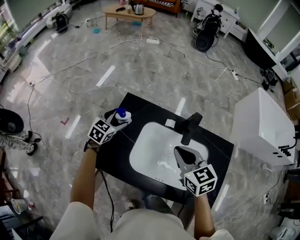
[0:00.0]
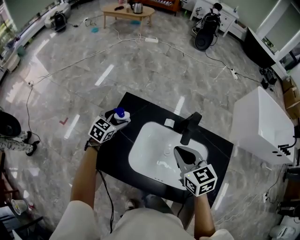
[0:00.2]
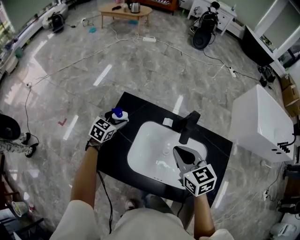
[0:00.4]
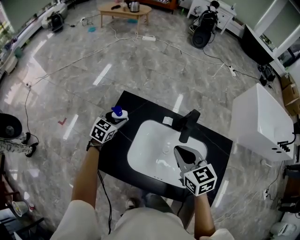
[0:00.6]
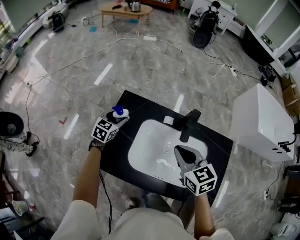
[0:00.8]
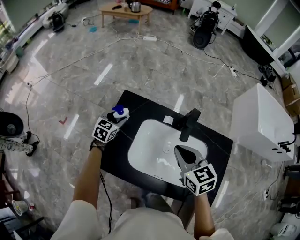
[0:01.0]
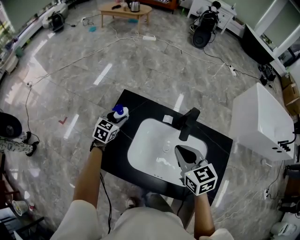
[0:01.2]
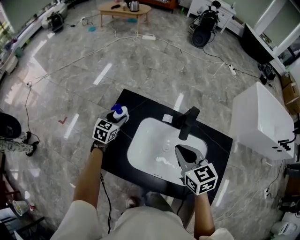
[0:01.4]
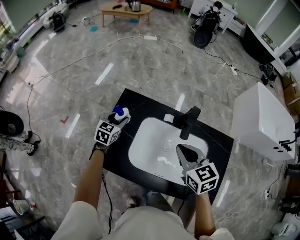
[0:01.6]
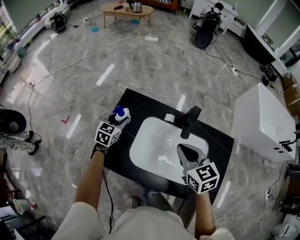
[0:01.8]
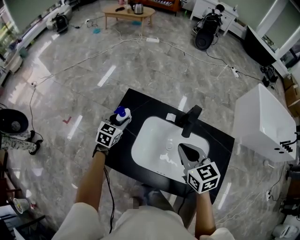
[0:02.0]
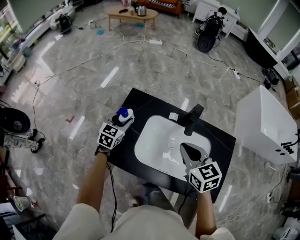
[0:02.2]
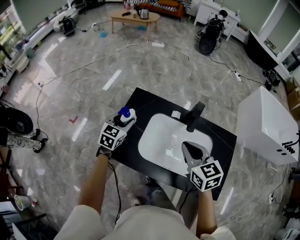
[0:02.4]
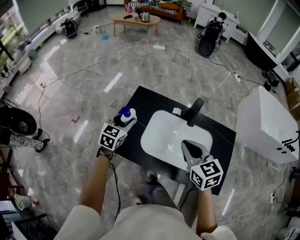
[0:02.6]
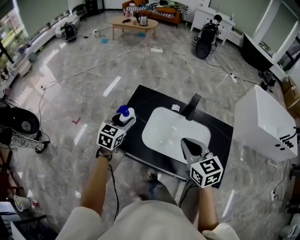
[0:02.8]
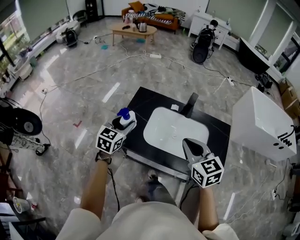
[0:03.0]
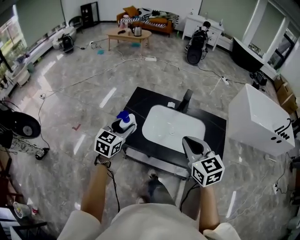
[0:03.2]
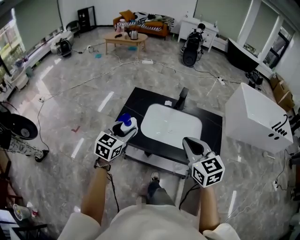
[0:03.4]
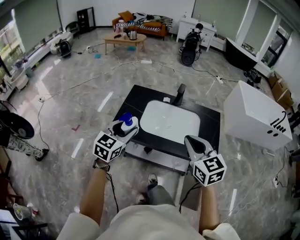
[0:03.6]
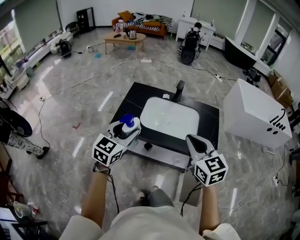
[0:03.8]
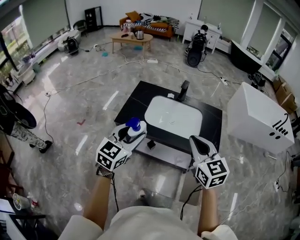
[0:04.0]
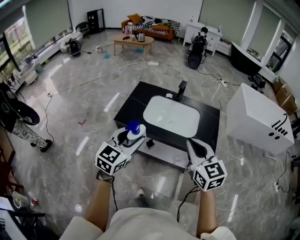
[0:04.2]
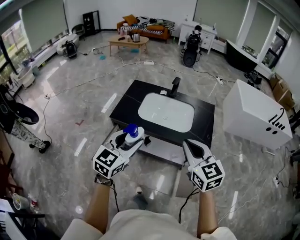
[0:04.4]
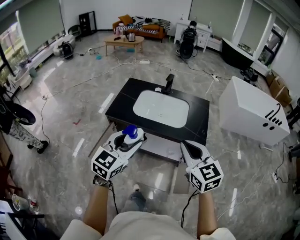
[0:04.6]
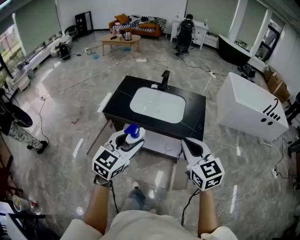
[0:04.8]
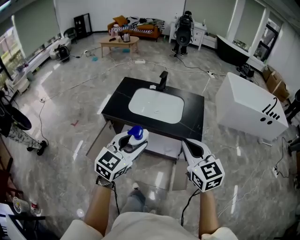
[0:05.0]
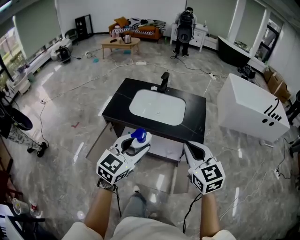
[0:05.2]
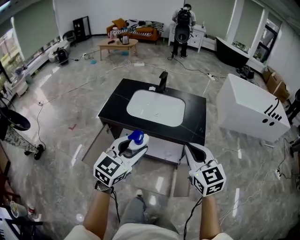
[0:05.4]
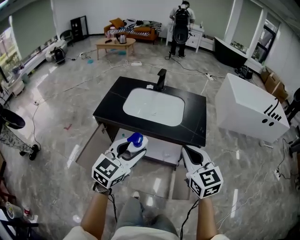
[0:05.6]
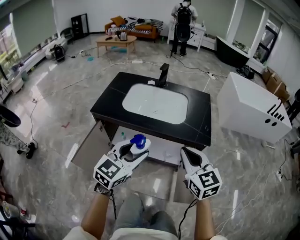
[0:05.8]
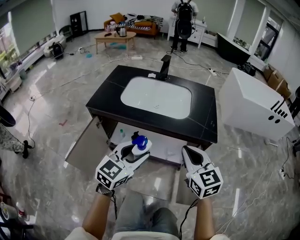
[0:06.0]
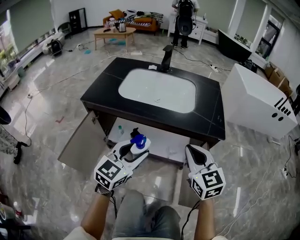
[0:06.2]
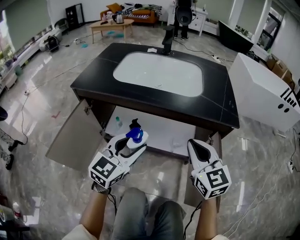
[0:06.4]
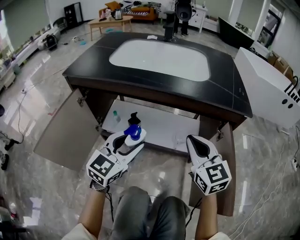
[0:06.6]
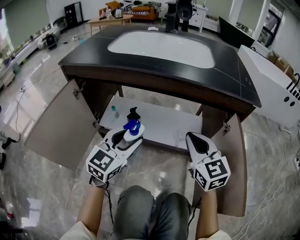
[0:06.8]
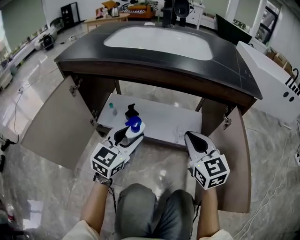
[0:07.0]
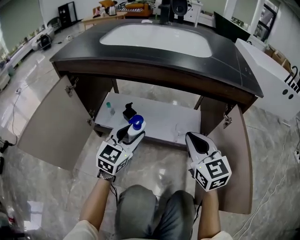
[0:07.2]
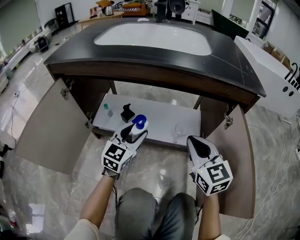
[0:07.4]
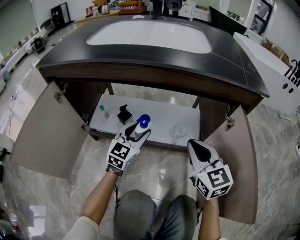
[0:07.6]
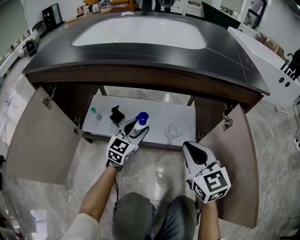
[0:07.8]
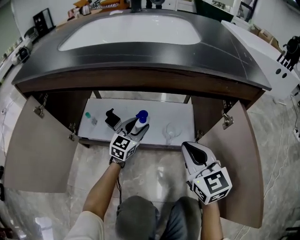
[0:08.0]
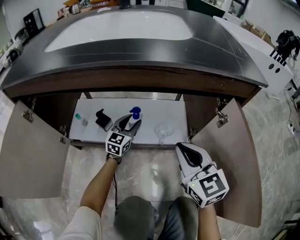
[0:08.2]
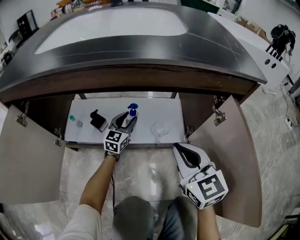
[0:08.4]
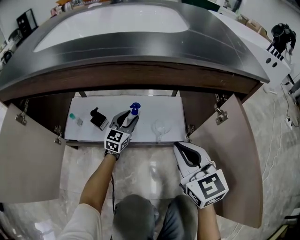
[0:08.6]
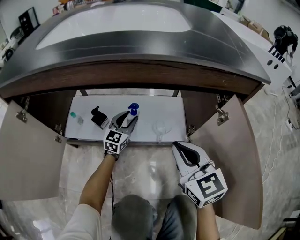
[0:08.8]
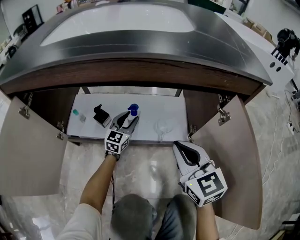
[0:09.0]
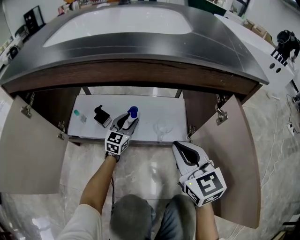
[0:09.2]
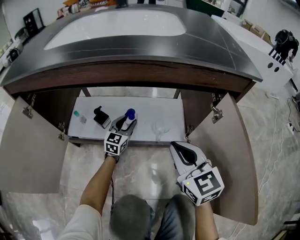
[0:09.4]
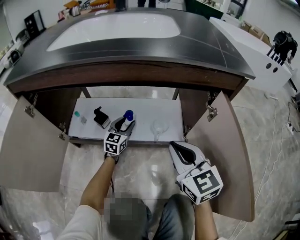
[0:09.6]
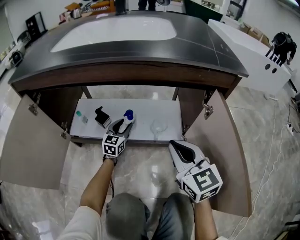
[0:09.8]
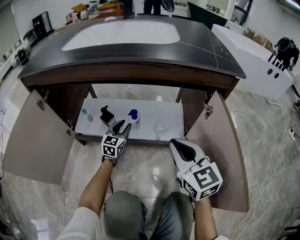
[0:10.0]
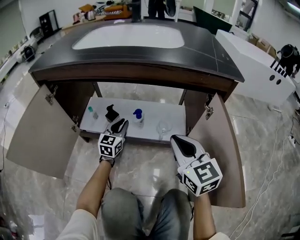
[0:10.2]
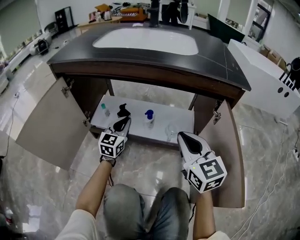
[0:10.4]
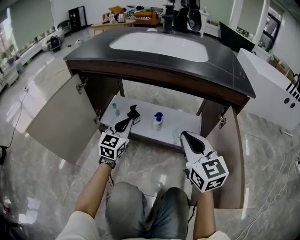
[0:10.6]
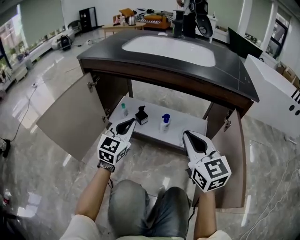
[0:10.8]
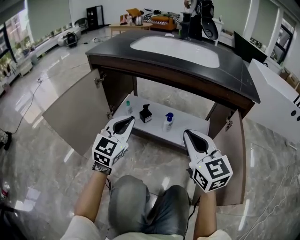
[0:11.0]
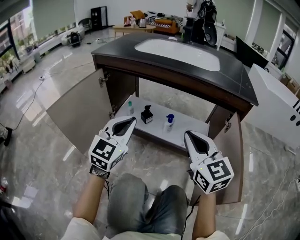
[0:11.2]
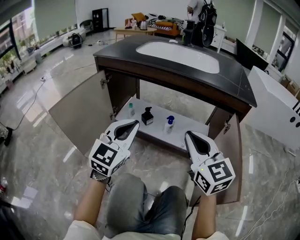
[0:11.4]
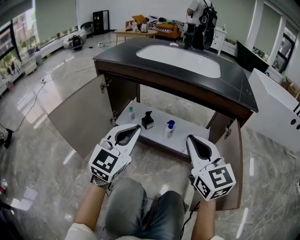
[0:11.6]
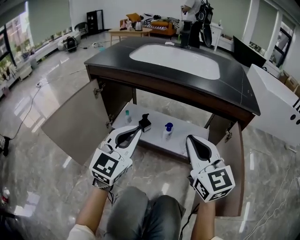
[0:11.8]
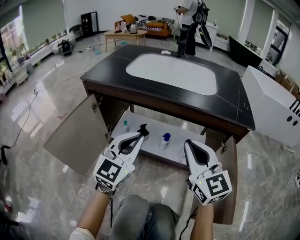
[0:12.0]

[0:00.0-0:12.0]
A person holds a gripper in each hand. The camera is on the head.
0.0 to 1.6 s: The left gripper closes up.
1.6 to 3.0 s: Both grippers move backward and upward, roughly 25 cm.
3.0 to 4.4 s: The right gripper is displaced backward by some 30 cm. Meanwhile the left gripper heads backward and to the right, covering some 40 cm.
4.4 to 6.0 s: Both grippers travel together downward, about 25 cm.
6.0 to 7.6 s: The left gripper heads downward and forward, covering roughly 50 cm. The right gripper shifts approximately 35 cm downward.
7.6 to 9.0 s: The left gripper shifts some 20 cm downward and forward.
9.0 to 10.4 s: The right gripper shifts some 10 cm upward and backward, while the left gripper travels upward, backward and to the left by roughly 20 cm, and closes up.
10.4 to 12.0 s: The left gripper moves upward and backward, roughly 25 cm. Meanwhile the right gripper moves upward and to the left, some 15 cm.

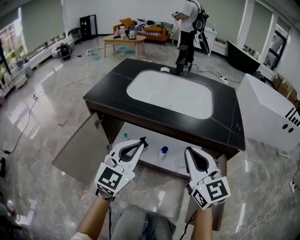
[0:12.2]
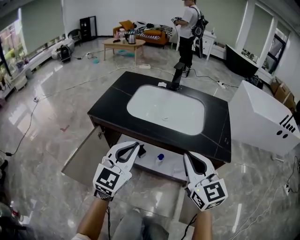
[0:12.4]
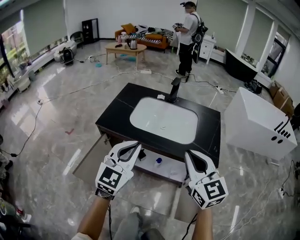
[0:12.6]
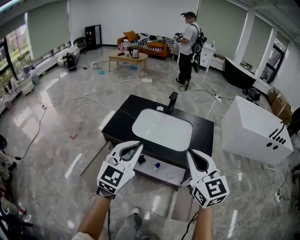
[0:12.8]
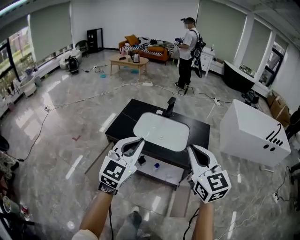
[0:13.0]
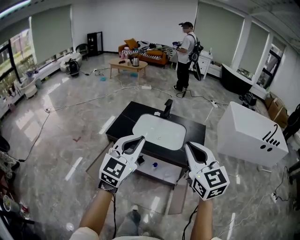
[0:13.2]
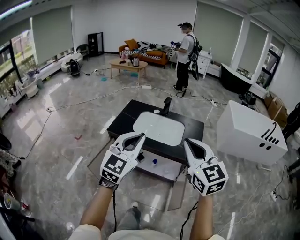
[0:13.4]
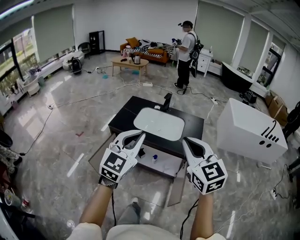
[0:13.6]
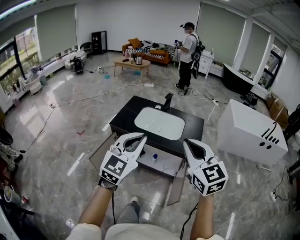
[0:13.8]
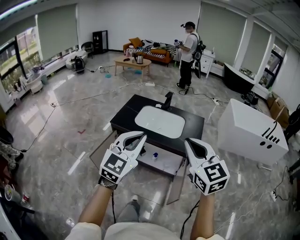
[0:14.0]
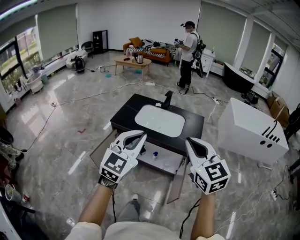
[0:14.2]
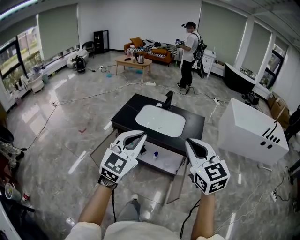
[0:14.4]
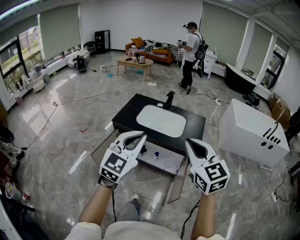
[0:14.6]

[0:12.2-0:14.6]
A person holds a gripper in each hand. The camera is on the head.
12.2 to 13.4 s: The two grippers go some 50 cm upward.
13.4 to 14.6 s: The two grippers go approximately 10 cm backward.

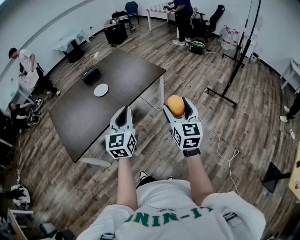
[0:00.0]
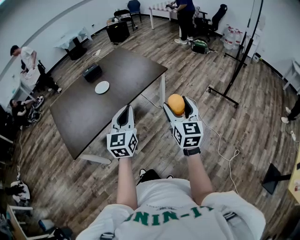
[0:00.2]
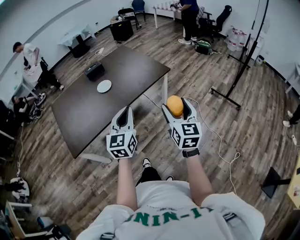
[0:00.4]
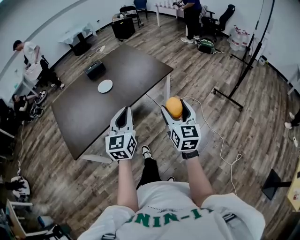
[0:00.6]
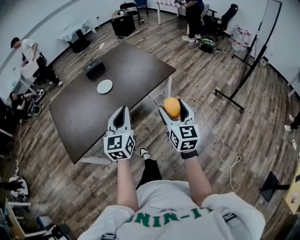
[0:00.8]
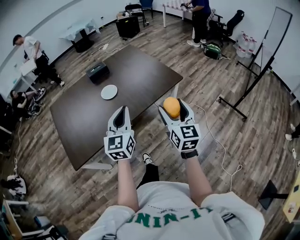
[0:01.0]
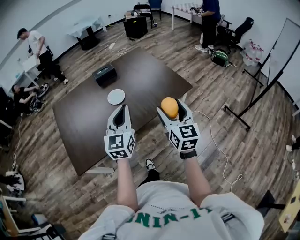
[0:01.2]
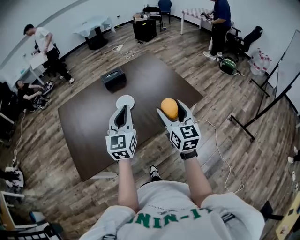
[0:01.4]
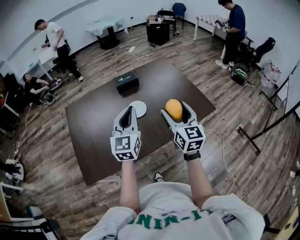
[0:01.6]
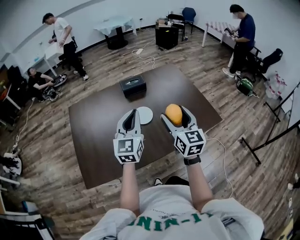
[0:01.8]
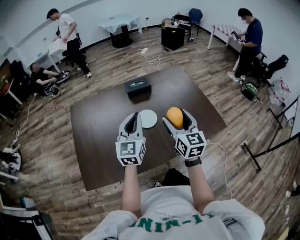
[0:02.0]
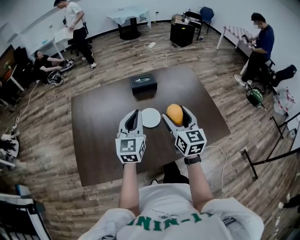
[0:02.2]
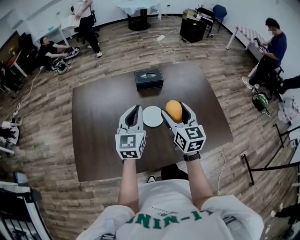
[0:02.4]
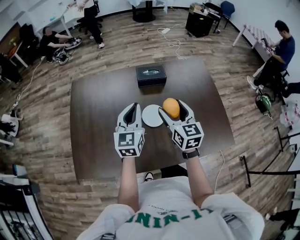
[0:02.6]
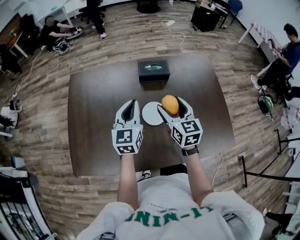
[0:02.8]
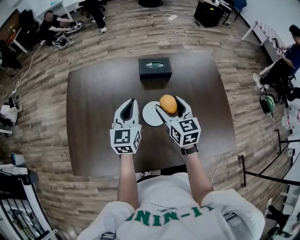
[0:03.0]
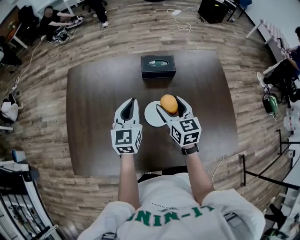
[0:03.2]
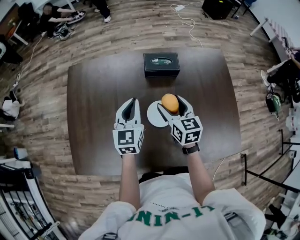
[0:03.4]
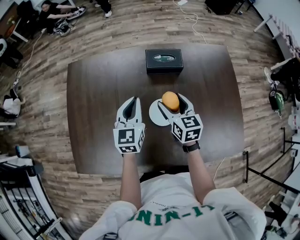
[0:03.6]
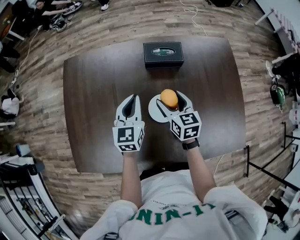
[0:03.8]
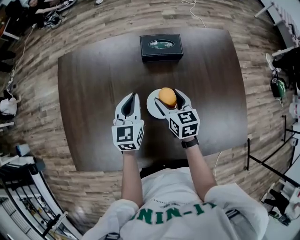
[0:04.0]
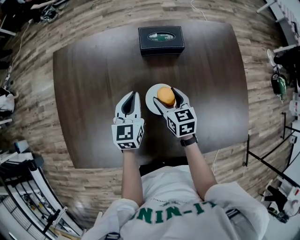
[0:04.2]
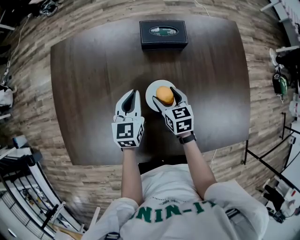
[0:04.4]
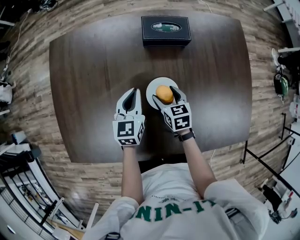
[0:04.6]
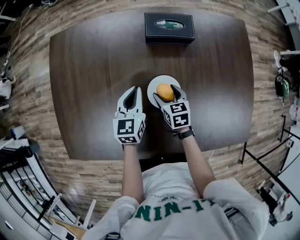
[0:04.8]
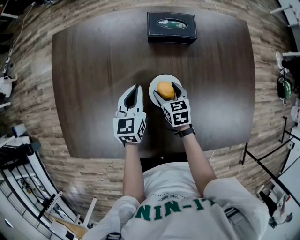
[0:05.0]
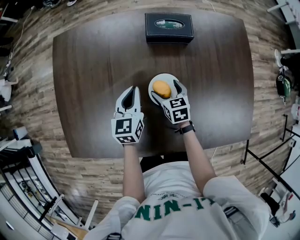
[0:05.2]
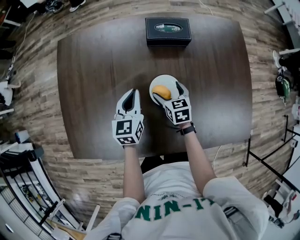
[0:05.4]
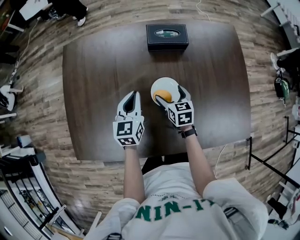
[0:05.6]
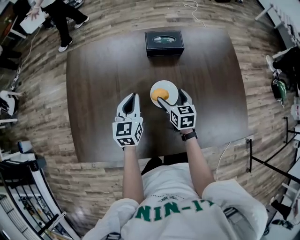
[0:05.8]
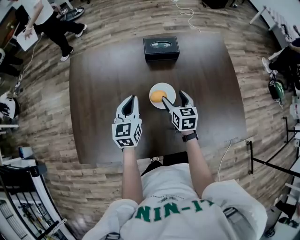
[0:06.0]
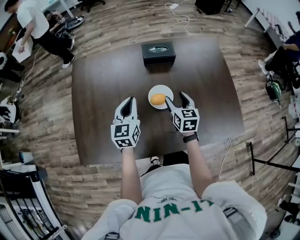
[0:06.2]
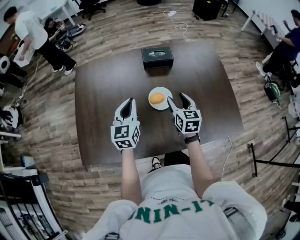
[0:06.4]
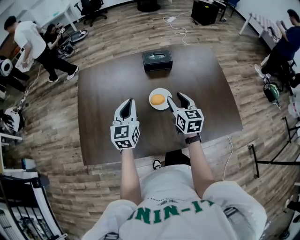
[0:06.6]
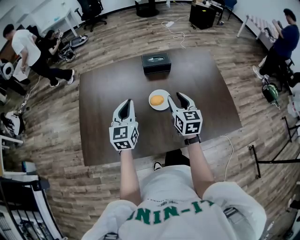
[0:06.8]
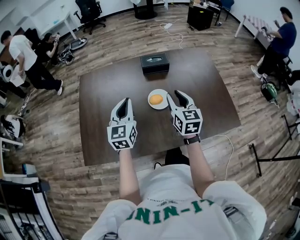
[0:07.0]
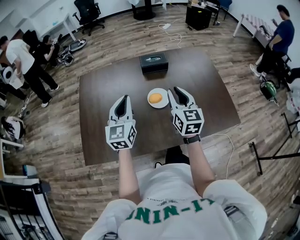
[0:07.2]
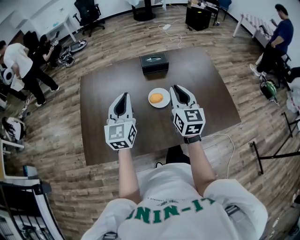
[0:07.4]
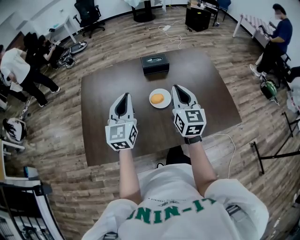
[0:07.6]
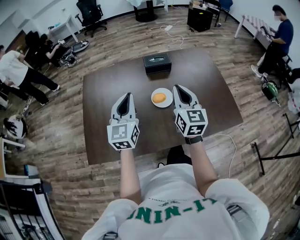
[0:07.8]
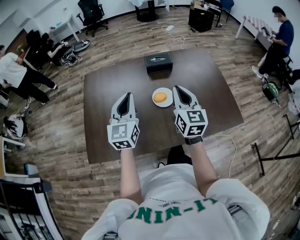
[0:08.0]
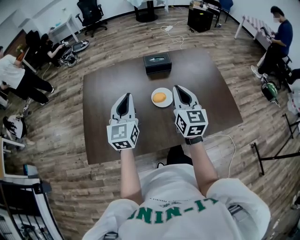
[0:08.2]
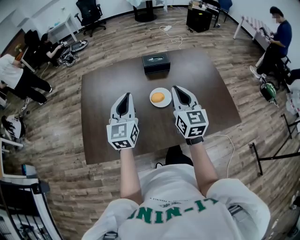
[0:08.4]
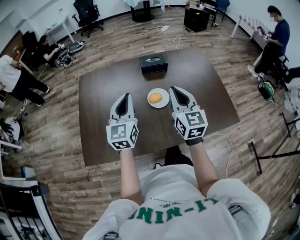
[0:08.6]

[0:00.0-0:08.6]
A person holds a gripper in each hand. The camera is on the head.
0.0 to 1.4 s: The two grippers go roughly 40 cm forward and to the left.
1.4 to 2.8 s: Both grippers travel together forward, about 35 cm. The left gripper changes its angle by approximately 20 degrees; the right gripper rotates approximately 30 degrees.
2.8 to 4.4 s: The two grippers go some 20 cm downward. The right gripper changes its angle by approximately 30 degrees.
4.4 to 5.8 s: The right gripper moves approximately 5 cm; the left gripper moves upward and backward, some 10 cm.
5.8 to 7.2 s: Both grippers move upward and backward, approximately 25 cm. The right gripper changes its angle by roughly 30 degrees, and closes, while the left gripper changes its angle by approximately 20 degrees.
7.2 to 8.6 s: The right gripper moves approximately 5 cm.

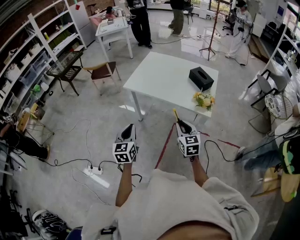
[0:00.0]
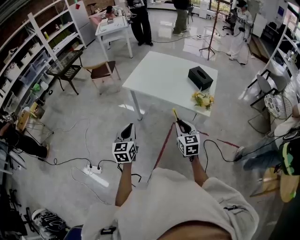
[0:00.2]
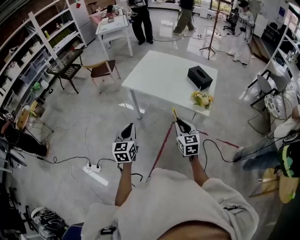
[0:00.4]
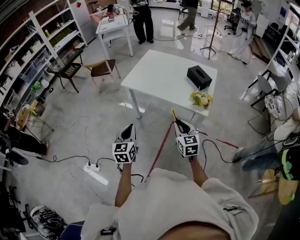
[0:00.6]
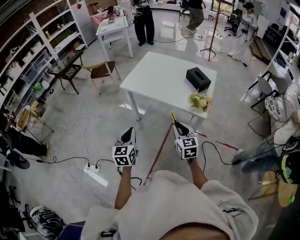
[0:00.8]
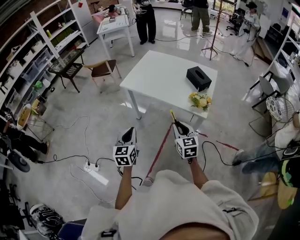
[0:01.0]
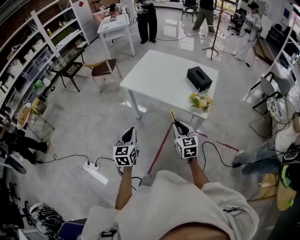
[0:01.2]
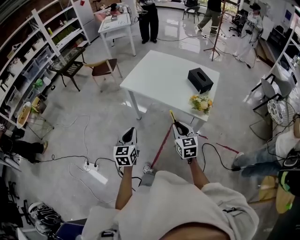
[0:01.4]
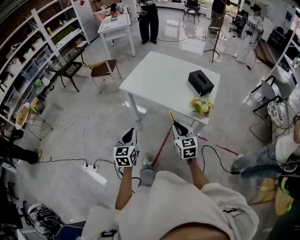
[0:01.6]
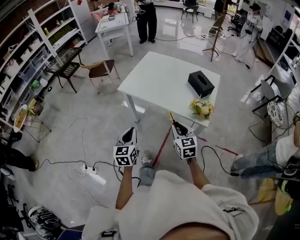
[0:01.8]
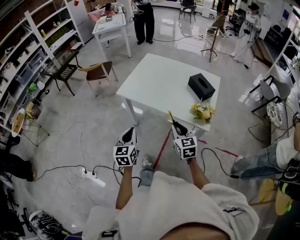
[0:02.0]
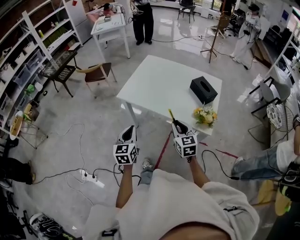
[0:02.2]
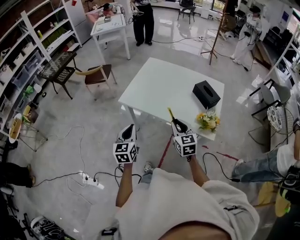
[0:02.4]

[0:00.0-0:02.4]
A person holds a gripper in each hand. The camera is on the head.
0.0 to 1.2 s: The left gripper travels to the right by some 5 cm.
1.2 to 2.4 s: The two grippers go about 20 cm forward.
